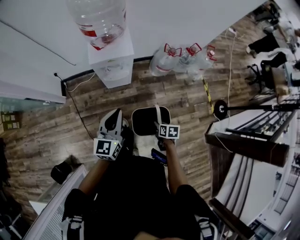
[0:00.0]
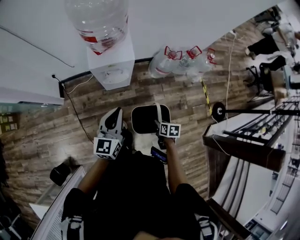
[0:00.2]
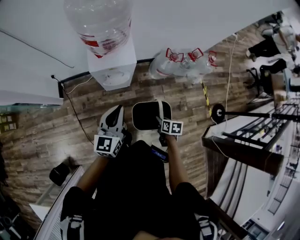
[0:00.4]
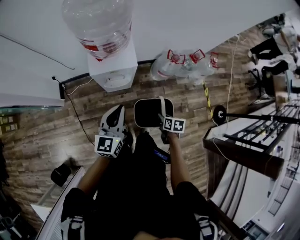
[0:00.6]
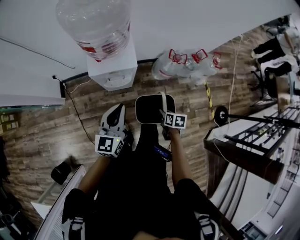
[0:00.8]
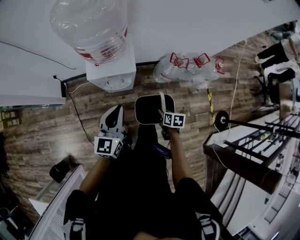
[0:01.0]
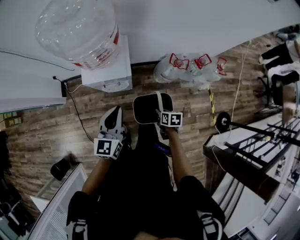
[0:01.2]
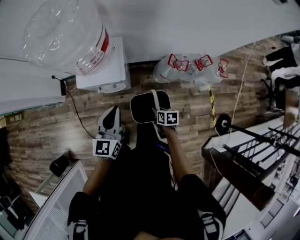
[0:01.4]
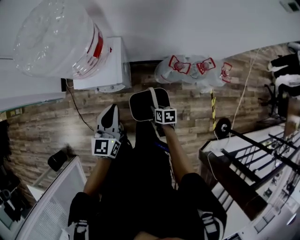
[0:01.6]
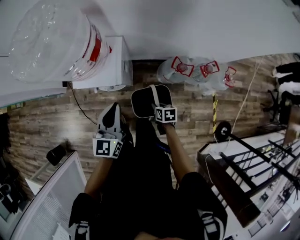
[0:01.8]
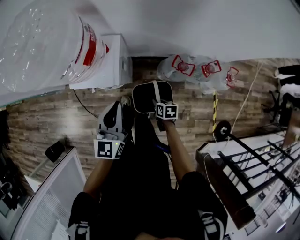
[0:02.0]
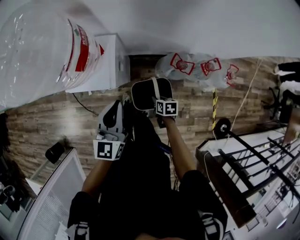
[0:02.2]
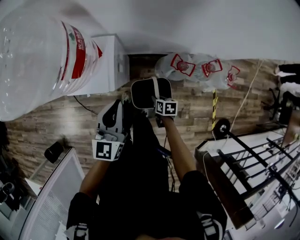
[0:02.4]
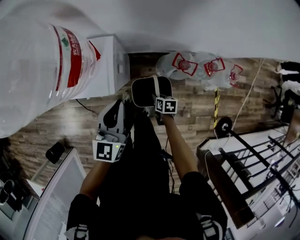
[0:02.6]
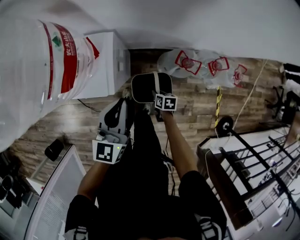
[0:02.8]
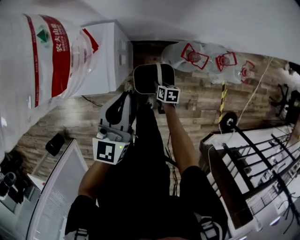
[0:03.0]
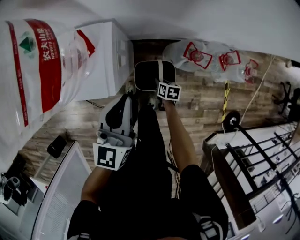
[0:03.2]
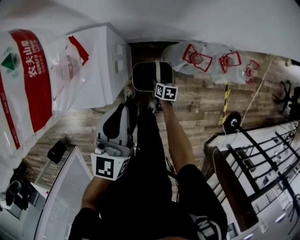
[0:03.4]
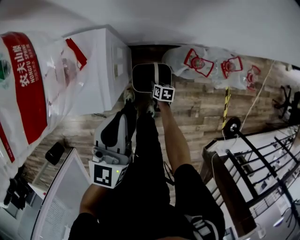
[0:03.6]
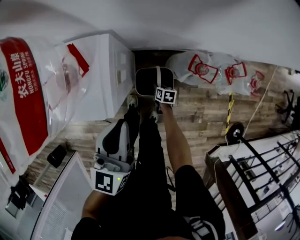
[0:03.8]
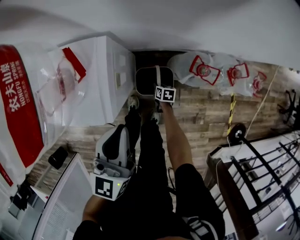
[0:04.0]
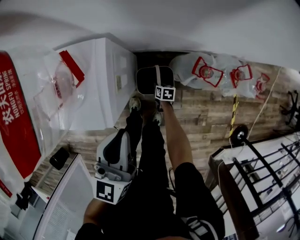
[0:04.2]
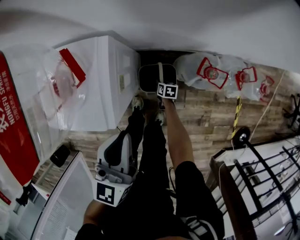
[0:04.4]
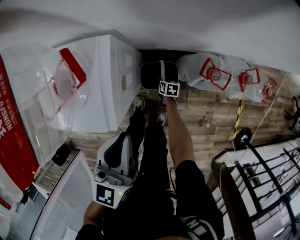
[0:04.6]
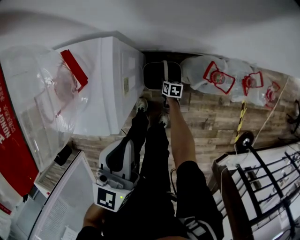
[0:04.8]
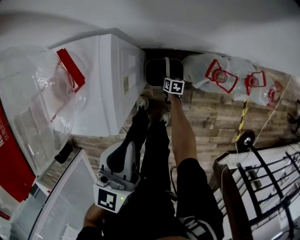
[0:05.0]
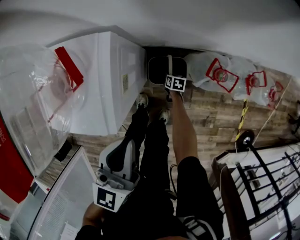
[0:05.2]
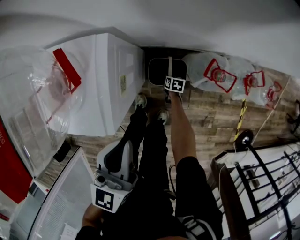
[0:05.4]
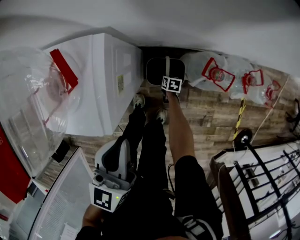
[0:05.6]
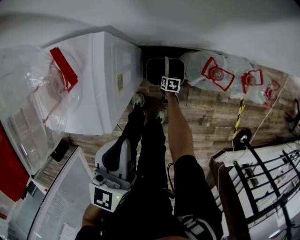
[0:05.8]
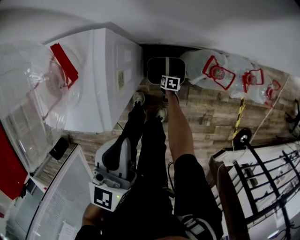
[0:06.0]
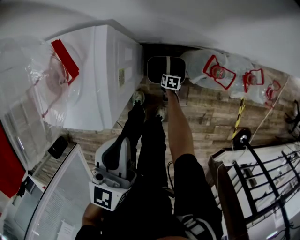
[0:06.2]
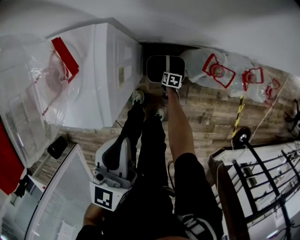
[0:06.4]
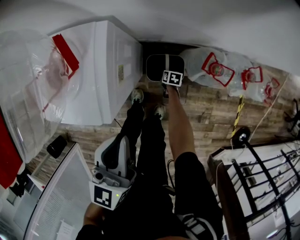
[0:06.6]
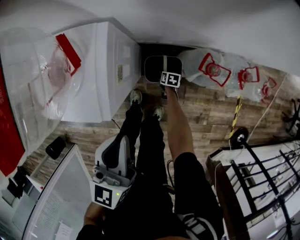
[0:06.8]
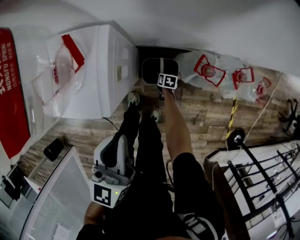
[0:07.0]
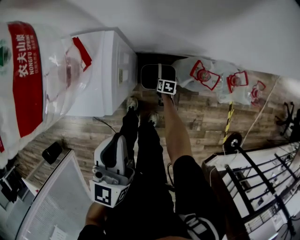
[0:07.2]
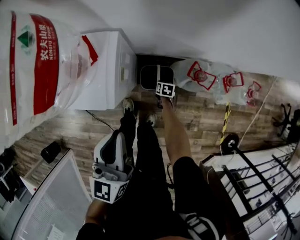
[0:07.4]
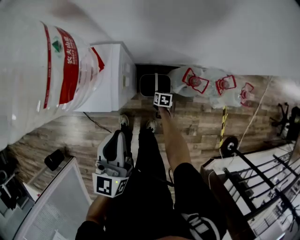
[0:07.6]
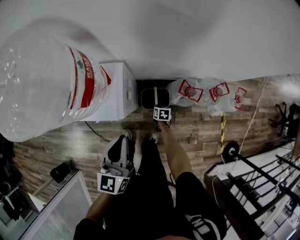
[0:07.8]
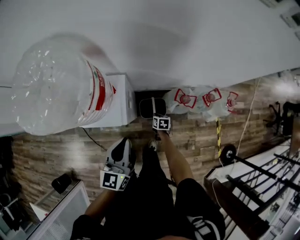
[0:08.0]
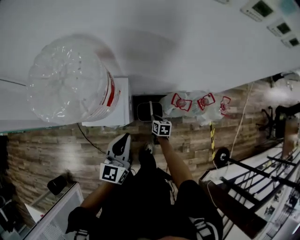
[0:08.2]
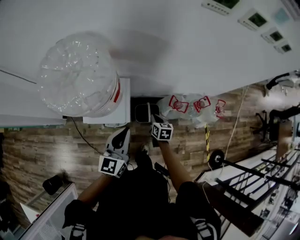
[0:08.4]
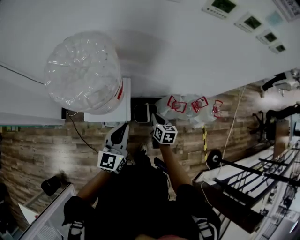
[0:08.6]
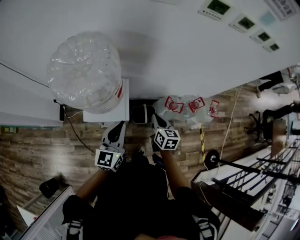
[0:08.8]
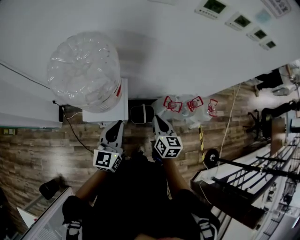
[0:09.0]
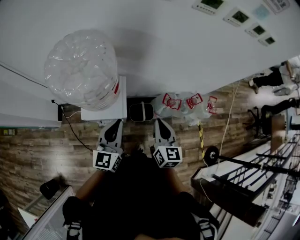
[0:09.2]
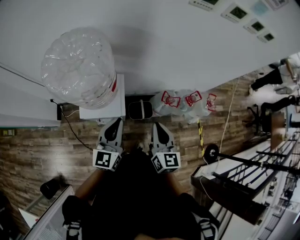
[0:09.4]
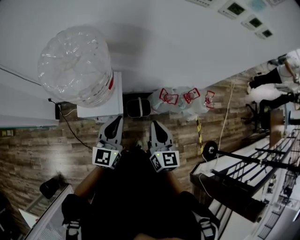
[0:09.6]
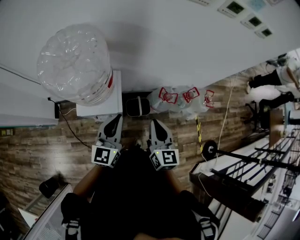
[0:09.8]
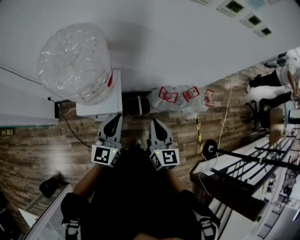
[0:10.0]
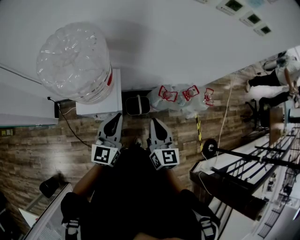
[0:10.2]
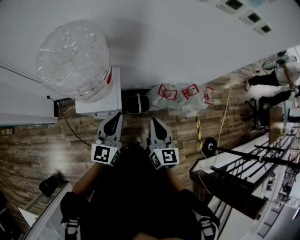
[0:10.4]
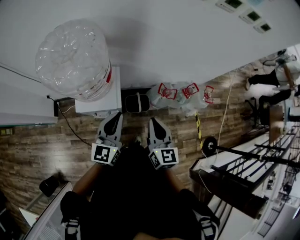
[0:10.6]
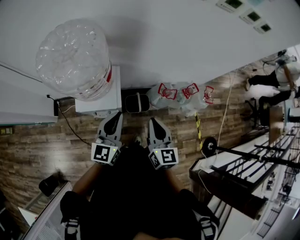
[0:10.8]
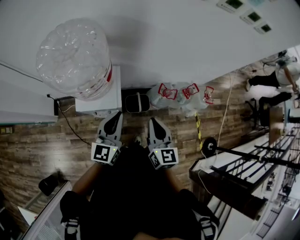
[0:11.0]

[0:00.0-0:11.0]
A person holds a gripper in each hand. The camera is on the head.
0:00.0 to 0:01.6: The two grippers go roughly 30 cm forward and to the right.
0:01.6 to 0:03.2: The right gripper heads downward and forward, covering about 25 cm, while the left gripper heads forward, to the right and downward, covering some 15 cm.
0:03.2 to 0:04.8: The left gripper is displaced downward by about 5 cm. Meanwhile the right gripper is displaced downward and forward by some 20 cm.
0:04.8 to 0:06.2: The right gripper changes place by some 5 cm.
0:06.2 to 0:07.8: The right gripper moves upward, roughly 25 cm, and opens and closes again; the left gripper goes approximately 15 cm upward and backward.
0:07.8 to 0:09.4: The right gripper heads upward, covering some 60 cm, and tilts its fingers some 50 degrees upward, while the left gripper shifts about 10 cm upward and to the left.
0:09.4 to 0:11.0: There are only small adjustments of the grippers.

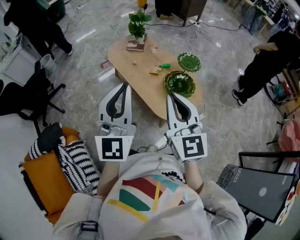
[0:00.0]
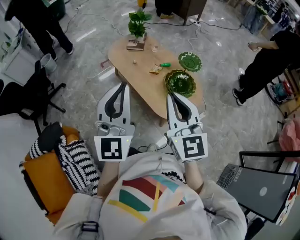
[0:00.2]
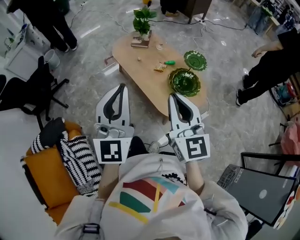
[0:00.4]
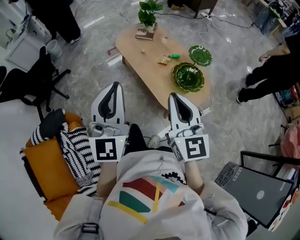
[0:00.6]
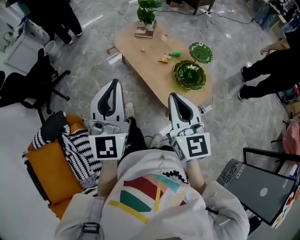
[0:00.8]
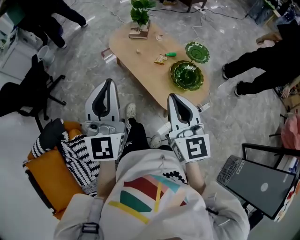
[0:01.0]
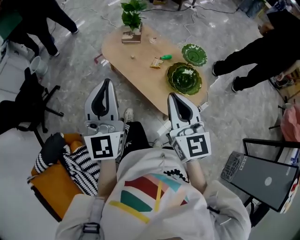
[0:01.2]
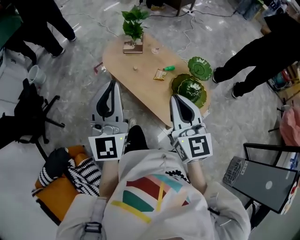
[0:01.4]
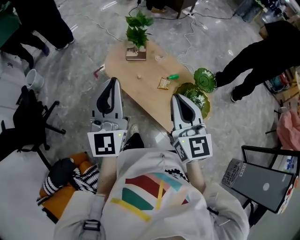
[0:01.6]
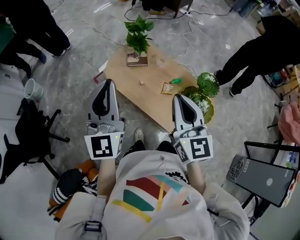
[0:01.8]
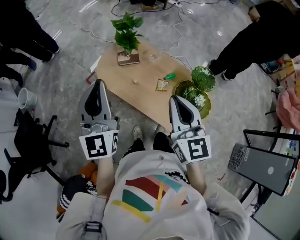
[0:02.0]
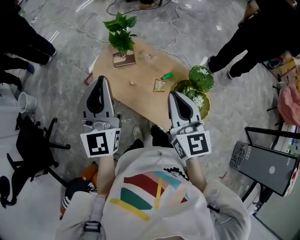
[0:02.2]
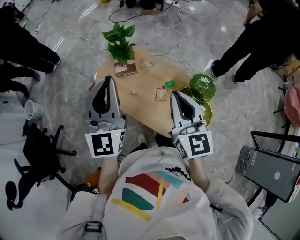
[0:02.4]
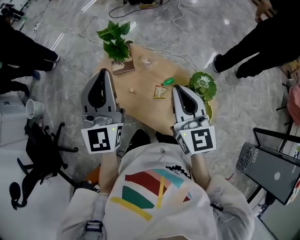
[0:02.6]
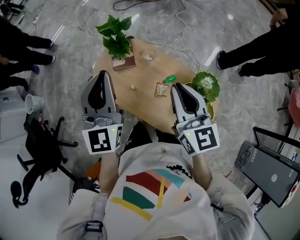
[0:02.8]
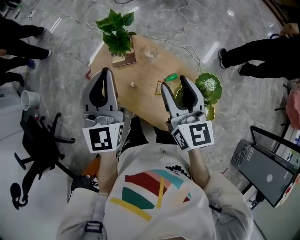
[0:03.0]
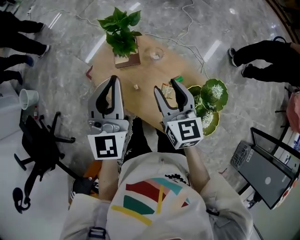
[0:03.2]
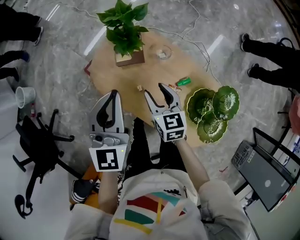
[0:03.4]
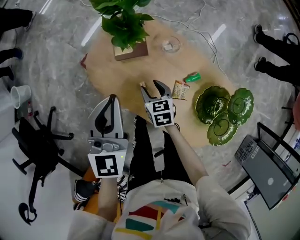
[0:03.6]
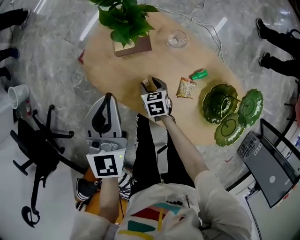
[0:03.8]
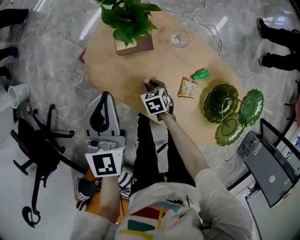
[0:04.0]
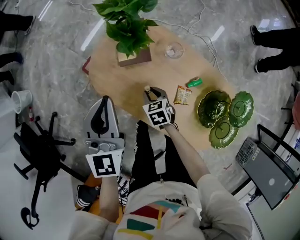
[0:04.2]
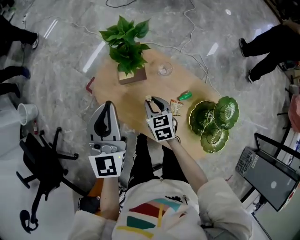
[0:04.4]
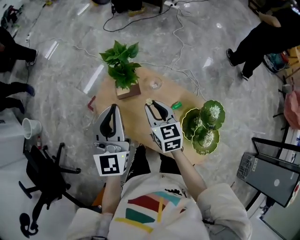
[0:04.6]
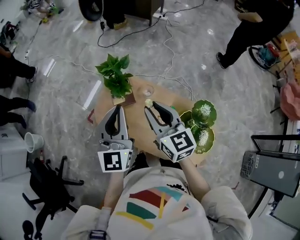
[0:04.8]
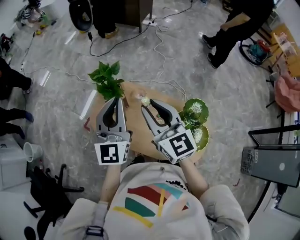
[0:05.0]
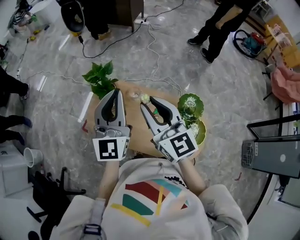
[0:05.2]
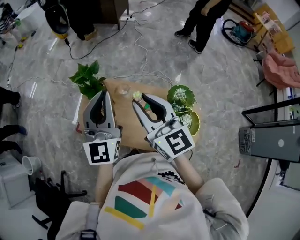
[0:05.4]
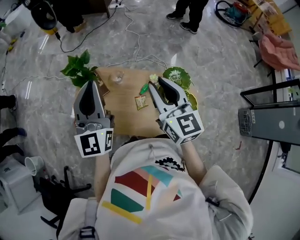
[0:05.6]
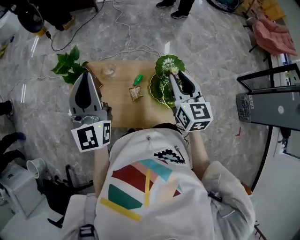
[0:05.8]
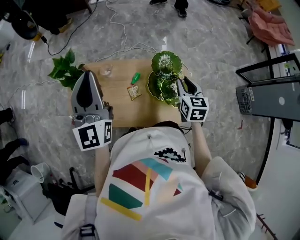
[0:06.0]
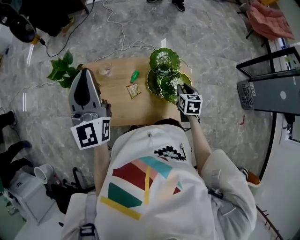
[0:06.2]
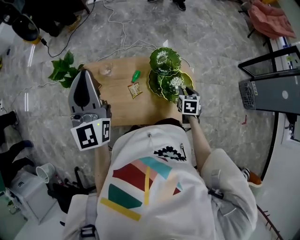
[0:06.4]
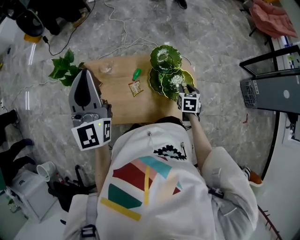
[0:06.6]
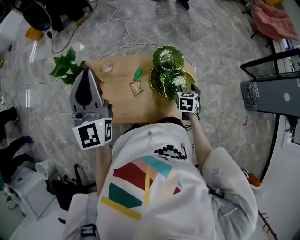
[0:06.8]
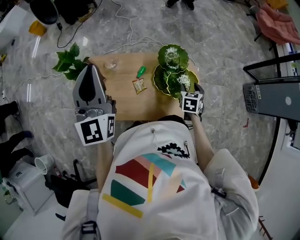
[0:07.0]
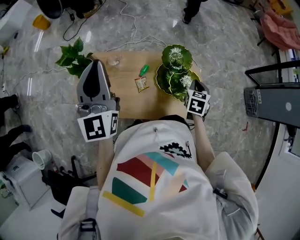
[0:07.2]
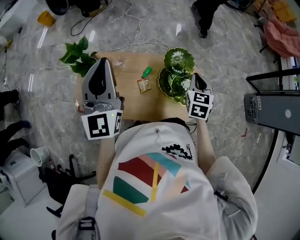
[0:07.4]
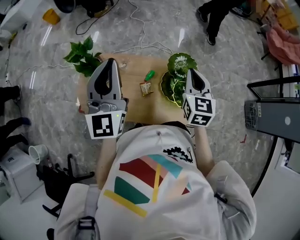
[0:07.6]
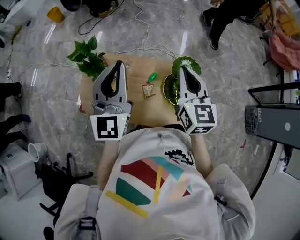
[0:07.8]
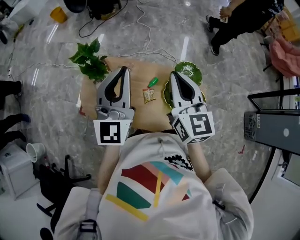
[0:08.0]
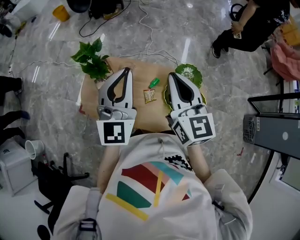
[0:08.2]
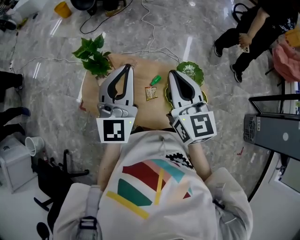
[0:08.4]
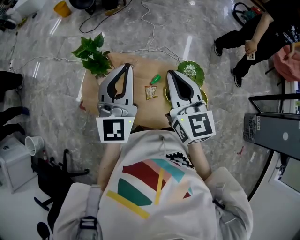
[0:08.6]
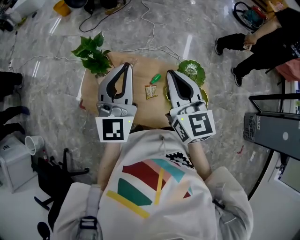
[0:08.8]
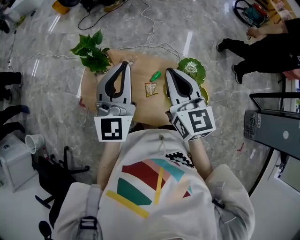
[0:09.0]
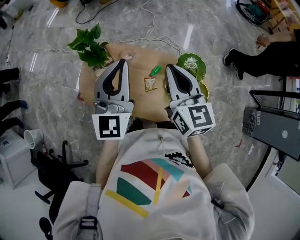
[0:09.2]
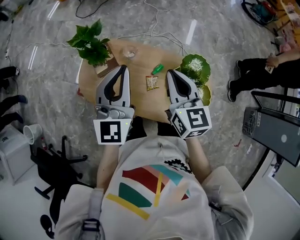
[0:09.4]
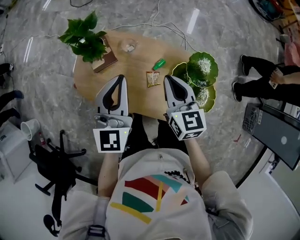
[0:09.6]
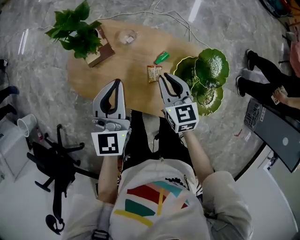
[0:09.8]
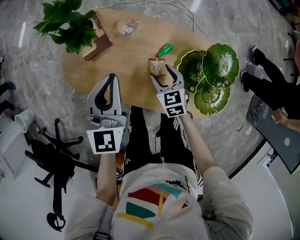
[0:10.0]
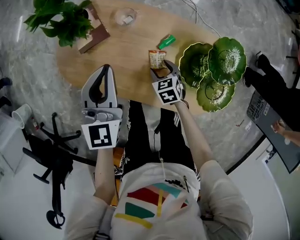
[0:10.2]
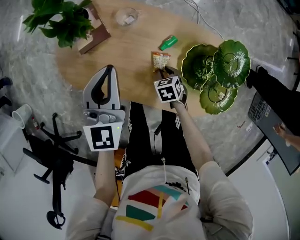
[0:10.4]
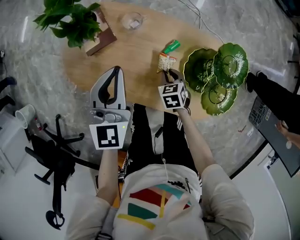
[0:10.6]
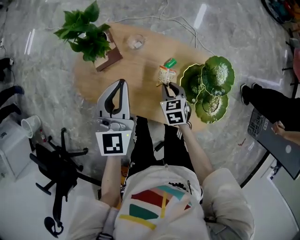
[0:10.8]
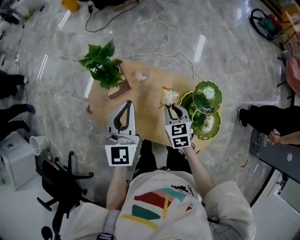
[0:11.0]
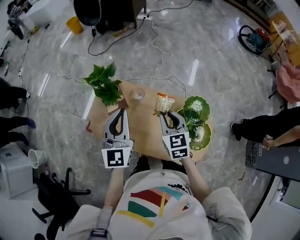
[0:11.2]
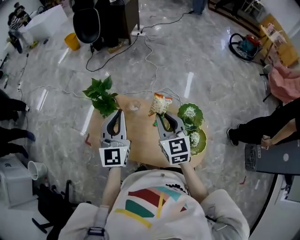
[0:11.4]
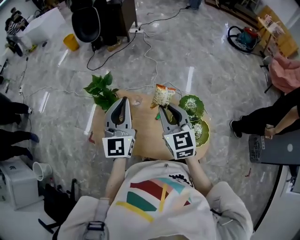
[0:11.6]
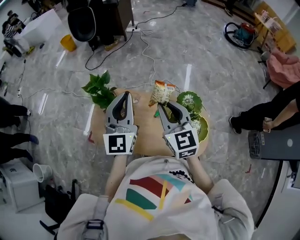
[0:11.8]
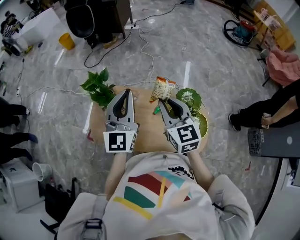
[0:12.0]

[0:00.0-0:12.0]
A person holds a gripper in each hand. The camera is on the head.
0:00.0 to 0:01.6: The left gripper travels forward and to the left by about 30 cm, while the right gripper travels forward by roughly 25 cm.
0:01.6 to 0:03.0: The grippers both shift forward by roughly 25 cm. The right gripper opens up.
0:03.0 to 0:04.4: The left gripper is displaced downward, to the left and forward by about 15 cm. Meanwhile the right gripper is displaced downward and to the left by some 35 cm, tips its fingers downward by approximately 30 degrees, and closes its fingers.
0:04.4 to 0:06.0: The right gripper changes place by some 40 cm, and rotates roughly 50 degrees. Meanwhile the left gripper shifts by roughly 25 cm, and rotates roughly 30 degrees.
0:06.0 to 0:07.6: The right gripper shifts approximately 10 cm upward and to the left, and closes its fingers.
0:07.6 to 0:09.0: The right gripper moves to the left and upward, approximately 15 cm, and swivels about 30 degrees.
0:09.0 to 0:10.4: The right gripper shifts approximately 50 cm downward, tilts its fingers some 60 degrees downward, and opens up. The left gripper travels downward by approximately 30 cm, and swivels approximately 30 degrees.
0:10.4 to 0:12.0: The right gripper heads upward, covering approximately 50 cm, and tilts its fingers some 60 degrees upward. Meanwhile the left gripper heads upward, covering approximately 30 cm, and turns by roughly 20 degrees.
